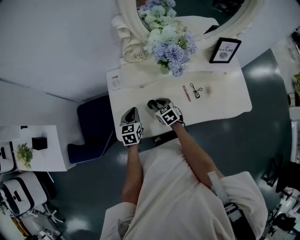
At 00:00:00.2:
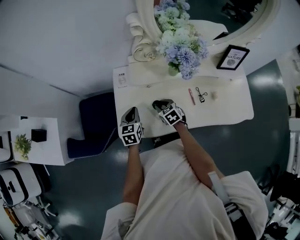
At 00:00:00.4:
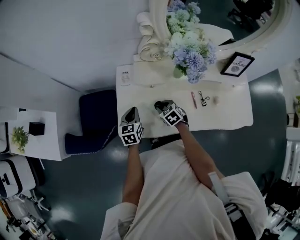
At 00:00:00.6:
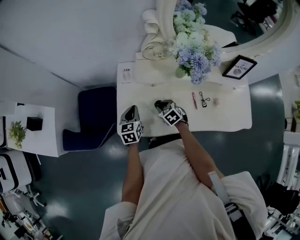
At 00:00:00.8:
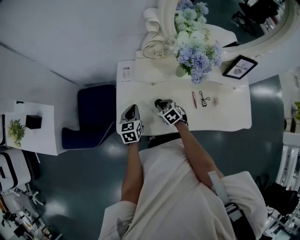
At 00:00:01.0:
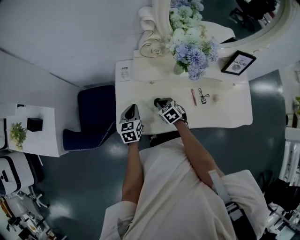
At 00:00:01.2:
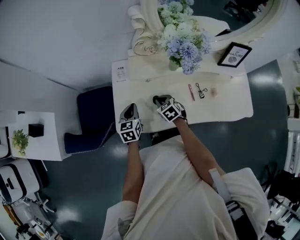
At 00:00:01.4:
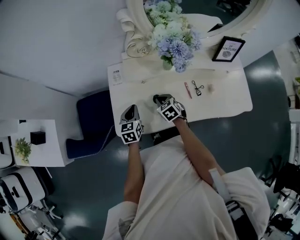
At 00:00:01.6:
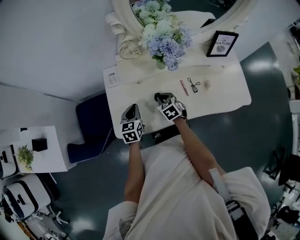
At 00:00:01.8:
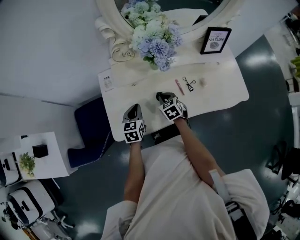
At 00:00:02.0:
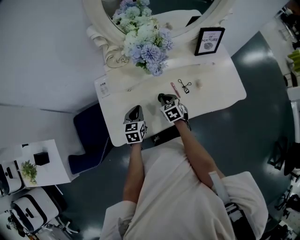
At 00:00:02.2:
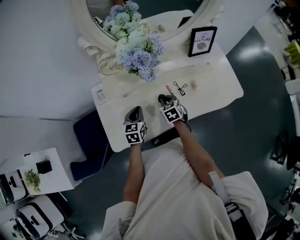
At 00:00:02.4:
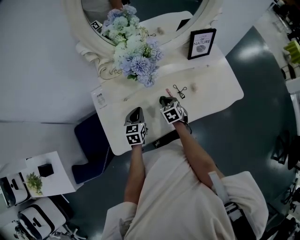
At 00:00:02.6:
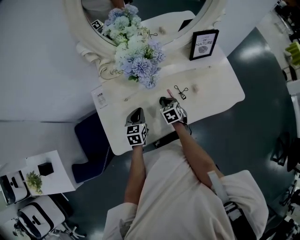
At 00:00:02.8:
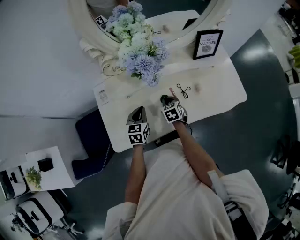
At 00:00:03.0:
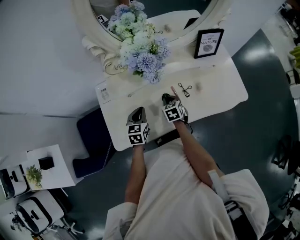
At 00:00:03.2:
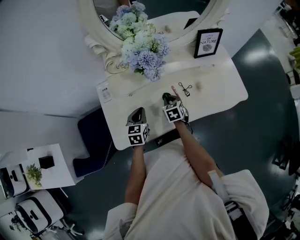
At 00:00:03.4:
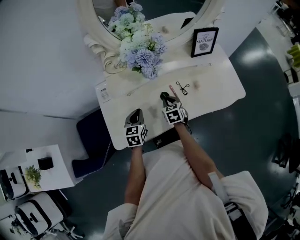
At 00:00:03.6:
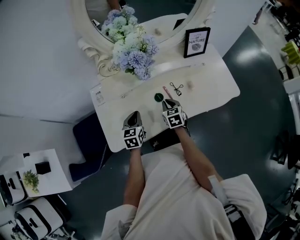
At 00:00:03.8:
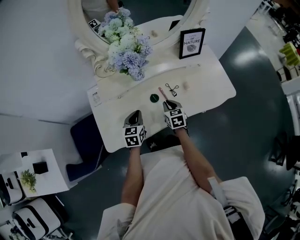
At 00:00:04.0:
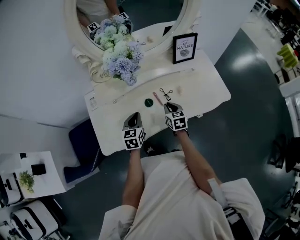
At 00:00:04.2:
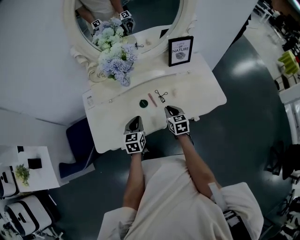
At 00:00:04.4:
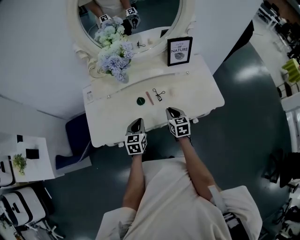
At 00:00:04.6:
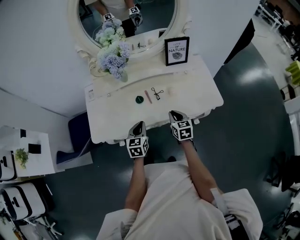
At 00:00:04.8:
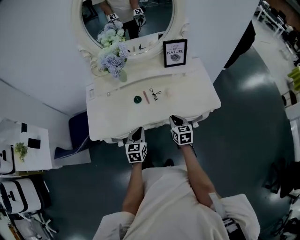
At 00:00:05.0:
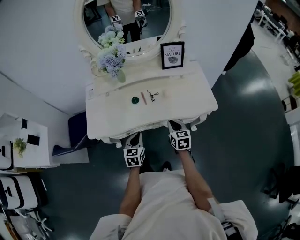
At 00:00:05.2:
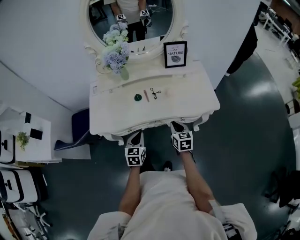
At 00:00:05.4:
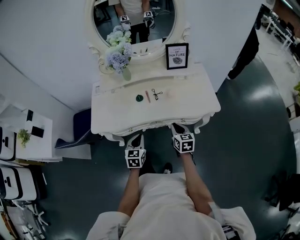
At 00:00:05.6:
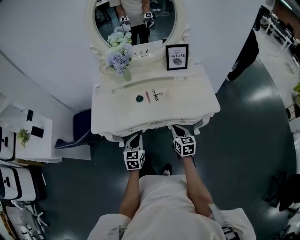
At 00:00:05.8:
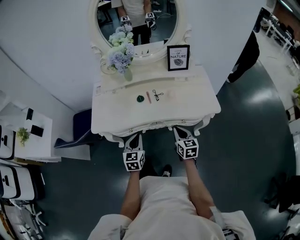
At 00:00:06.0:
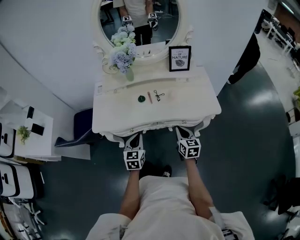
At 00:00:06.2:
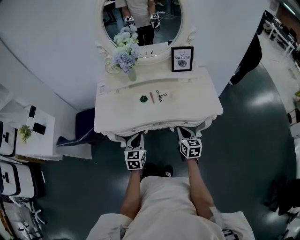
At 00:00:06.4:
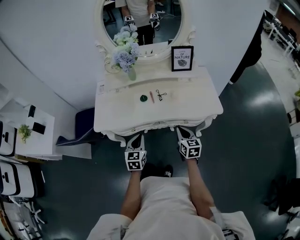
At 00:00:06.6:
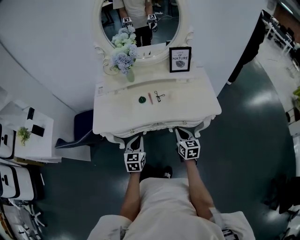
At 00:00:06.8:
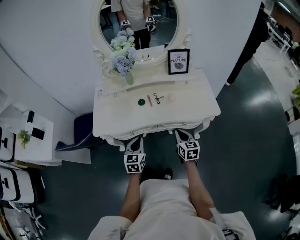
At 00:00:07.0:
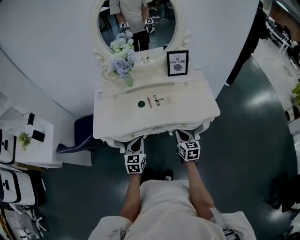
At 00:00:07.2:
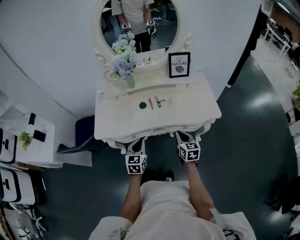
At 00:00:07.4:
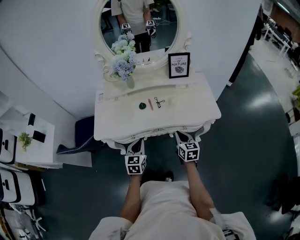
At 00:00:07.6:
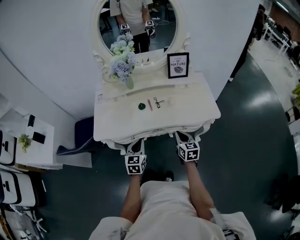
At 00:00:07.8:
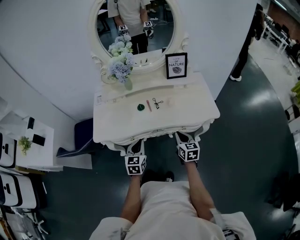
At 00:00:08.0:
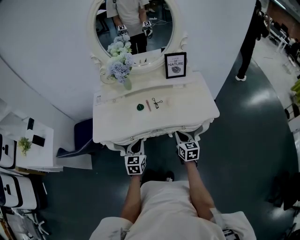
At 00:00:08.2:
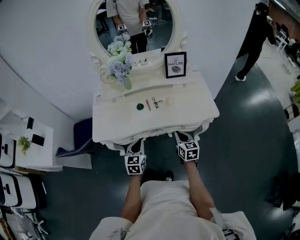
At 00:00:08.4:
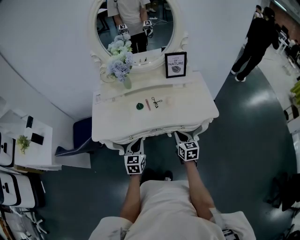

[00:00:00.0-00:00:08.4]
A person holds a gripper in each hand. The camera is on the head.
00:00:00.0 to 00:00:01.4: The right gripper closes.
00:00:01.4 to 00:00:02.8: The two grippers go about 15 cm to the right. The right gripper turns by approximately 30 degrees.
00:00:02.8 to 00:00:04.2: The right gripper moves to the right, backward and upward, approximately 15 cm. Meanwhile the left gripper is displaced to the right and backward by approximately 10 cm.
00:00:04.2 to 00:00:05.6: The left gripper heads backward, covering approximately 20 cm; the right gripper heads backward and to the right, covering approximately 20 cm.
00:00:05.6 to 00:00:07.0: There are only small adjustments of the grippers.
00:00:07.0 to 00:00:08.4: Neither gripper changes place.

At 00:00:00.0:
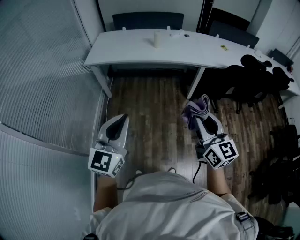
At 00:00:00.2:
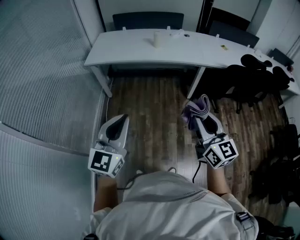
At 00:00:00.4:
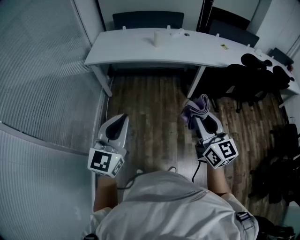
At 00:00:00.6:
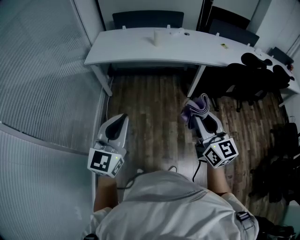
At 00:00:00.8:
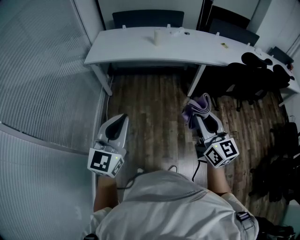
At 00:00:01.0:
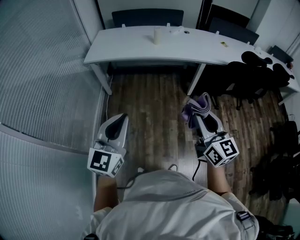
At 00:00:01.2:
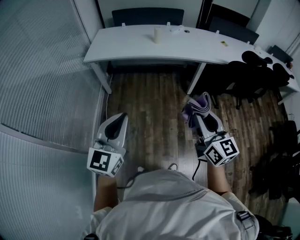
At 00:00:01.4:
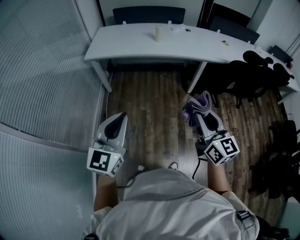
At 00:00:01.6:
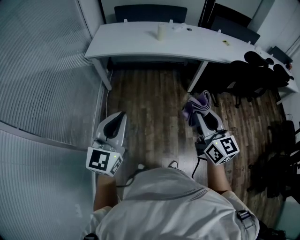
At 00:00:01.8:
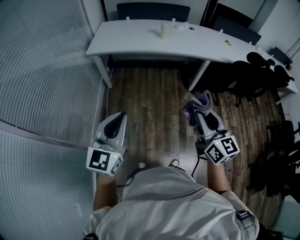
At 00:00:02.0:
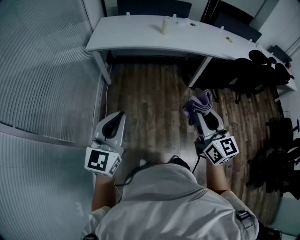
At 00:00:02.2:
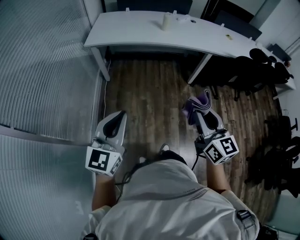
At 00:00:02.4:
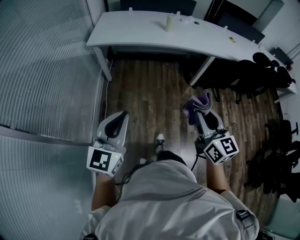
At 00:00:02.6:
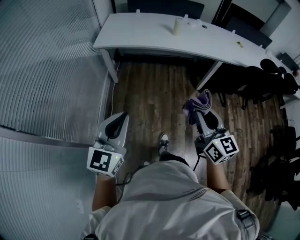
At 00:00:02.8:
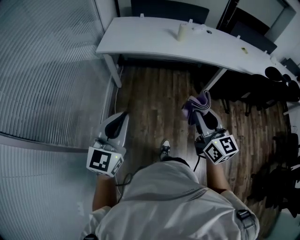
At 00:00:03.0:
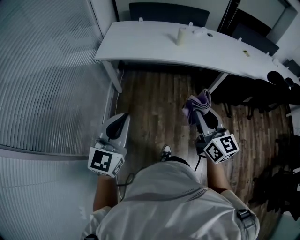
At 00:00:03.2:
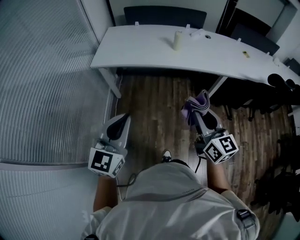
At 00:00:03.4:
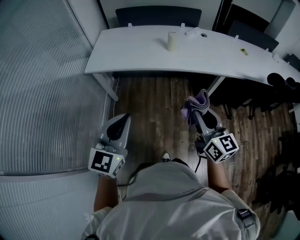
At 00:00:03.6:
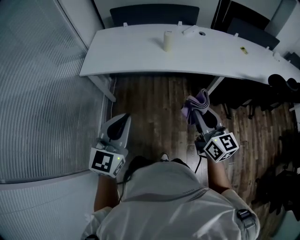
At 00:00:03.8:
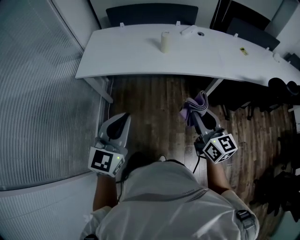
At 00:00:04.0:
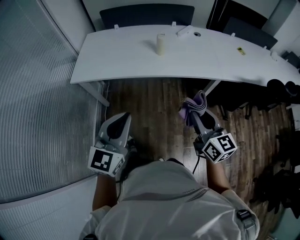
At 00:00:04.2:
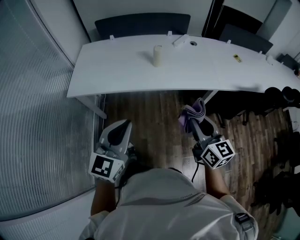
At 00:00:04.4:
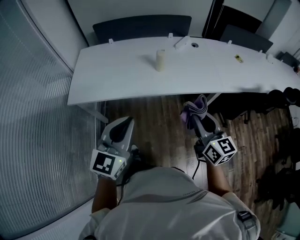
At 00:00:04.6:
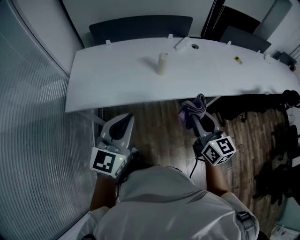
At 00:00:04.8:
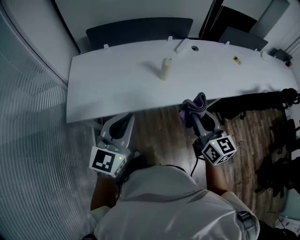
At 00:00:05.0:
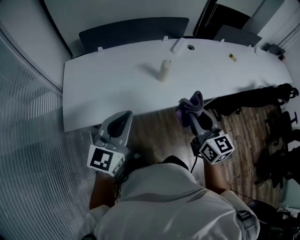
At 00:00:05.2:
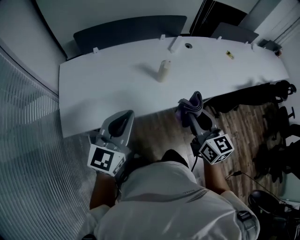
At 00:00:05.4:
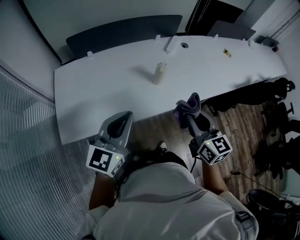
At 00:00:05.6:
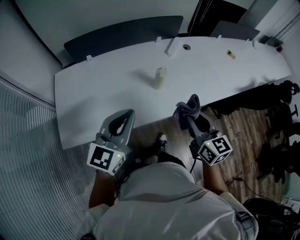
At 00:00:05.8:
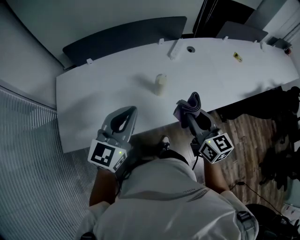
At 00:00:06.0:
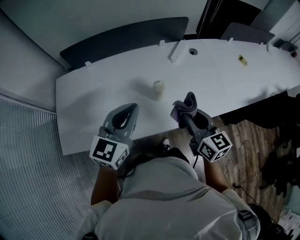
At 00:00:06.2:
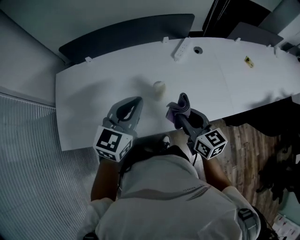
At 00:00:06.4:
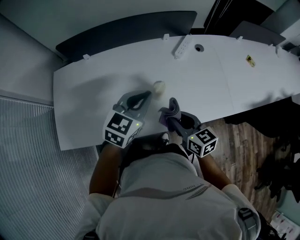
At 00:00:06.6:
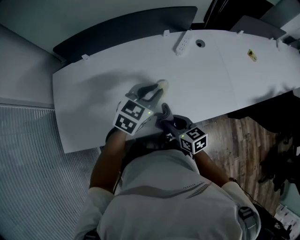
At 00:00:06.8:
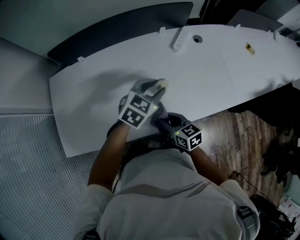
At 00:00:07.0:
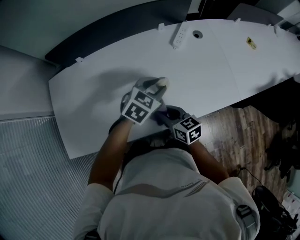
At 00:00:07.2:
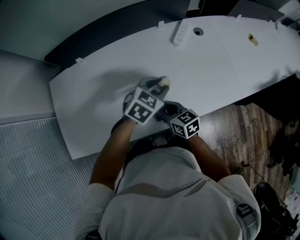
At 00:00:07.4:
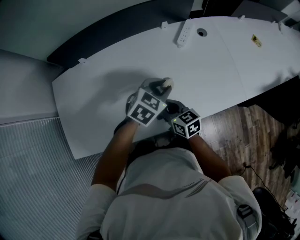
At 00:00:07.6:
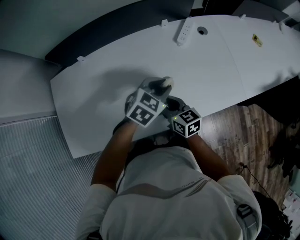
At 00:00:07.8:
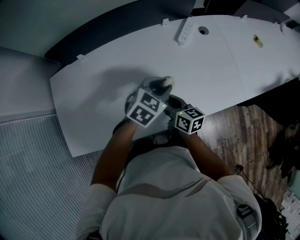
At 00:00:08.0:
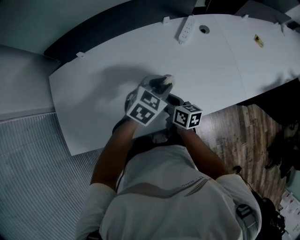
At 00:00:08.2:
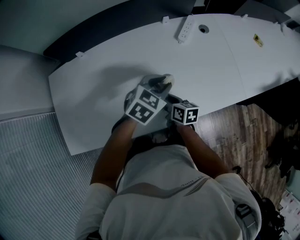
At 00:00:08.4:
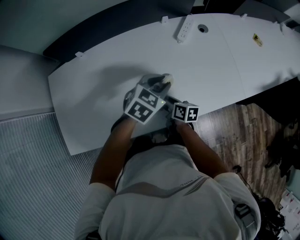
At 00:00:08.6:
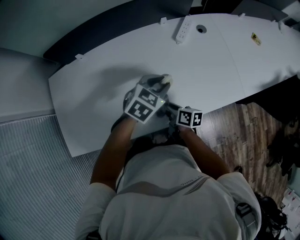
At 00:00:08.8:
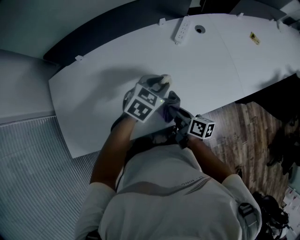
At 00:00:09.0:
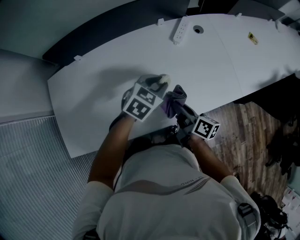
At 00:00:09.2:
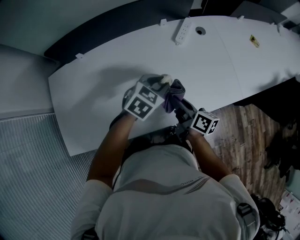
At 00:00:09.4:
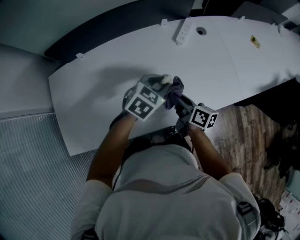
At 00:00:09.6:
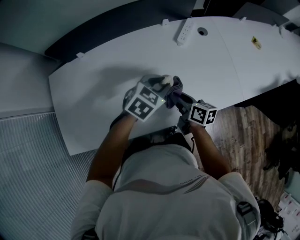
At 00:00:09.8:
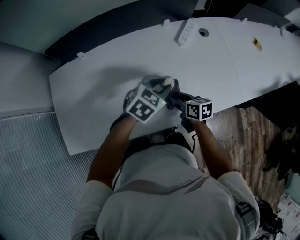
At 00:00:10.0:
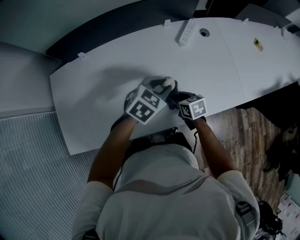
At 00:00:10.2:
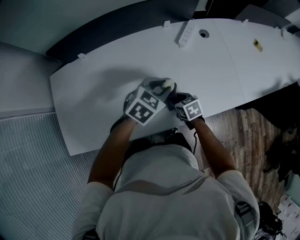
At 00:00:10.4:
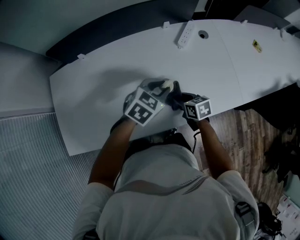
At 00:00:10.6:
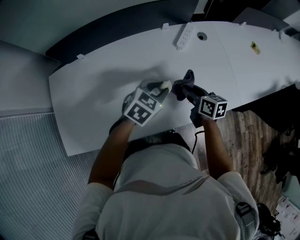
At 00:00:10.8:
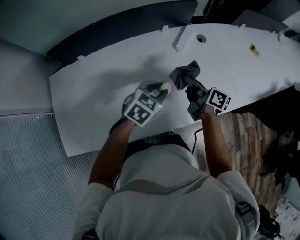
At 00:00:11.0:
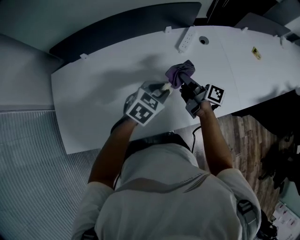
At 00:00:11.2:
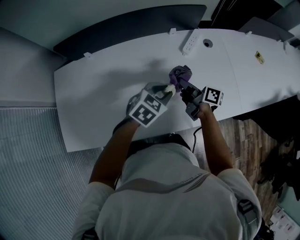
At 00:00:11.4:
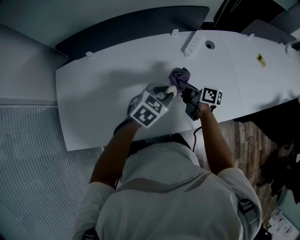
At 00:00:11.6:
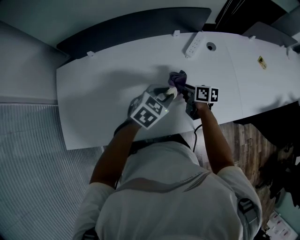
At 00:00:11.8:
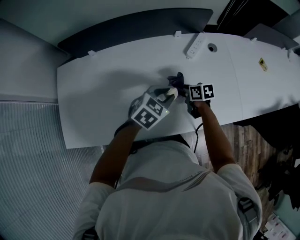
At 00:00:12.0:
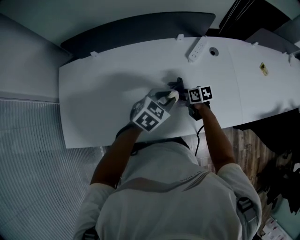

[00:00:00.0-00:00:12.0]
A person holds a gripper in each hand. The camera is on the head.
00:00:00.0 to 00:00:01.6: Both grippers travel together to the left, about 5 cm.
00:00:01.6 to 00:00:03.0: The two grippers go some 20 cm forward and to the left.
00:00:03.0 to 00:00:04.4: Both grippers travel together forward, some 35 cm.
00:00:04.4 to 00:00:06.0: The two grippers go roughly 35 cm forward.
00:00:06.0 to 00:00:07.6: The right gripper shifts about 25 cm downward, to the left and forward. Meanwhile the left gripper is displaced downward, forward and to the right by approximately 25 cm, angles its fingers downward, by about 30 degrees, and opens.
00:00:07.6 to 00:00:09.0: The right gripper is displaced to the right by roughly 10 cm, reaches about 10 cm downward, then returns, and turns by roughly 40 degrees.
00:00:09.0 to 00:00:10.4: The right gripper travels downward and forward by some 10 cm, and swivels some 50 degrees.
00:00:10.4 to 00:00:12.0: The right gripper shifts about 10 cm forward, and goes upward and returns, some 10 cm each way.

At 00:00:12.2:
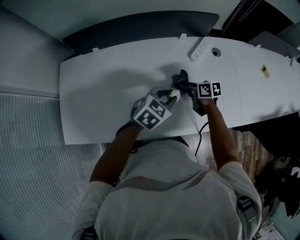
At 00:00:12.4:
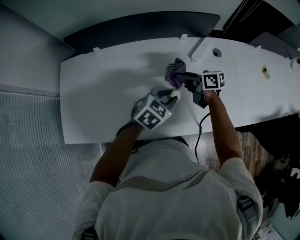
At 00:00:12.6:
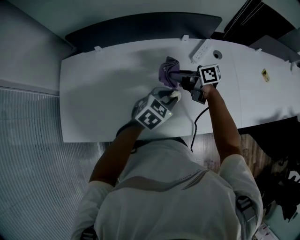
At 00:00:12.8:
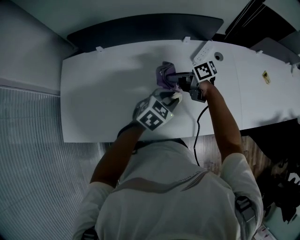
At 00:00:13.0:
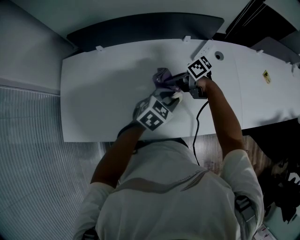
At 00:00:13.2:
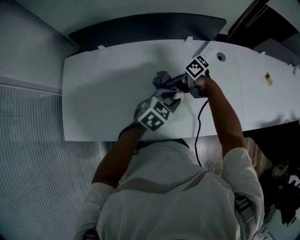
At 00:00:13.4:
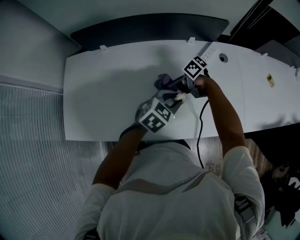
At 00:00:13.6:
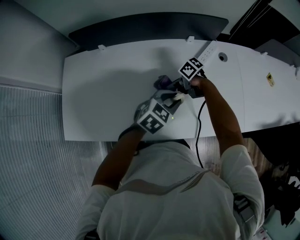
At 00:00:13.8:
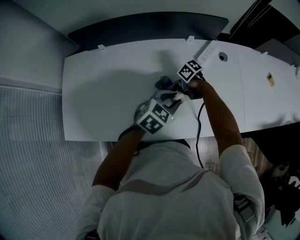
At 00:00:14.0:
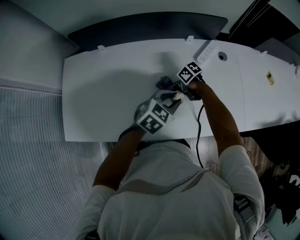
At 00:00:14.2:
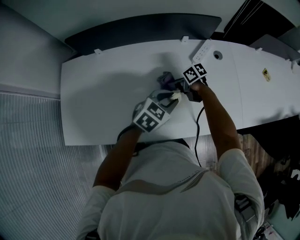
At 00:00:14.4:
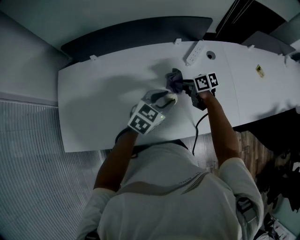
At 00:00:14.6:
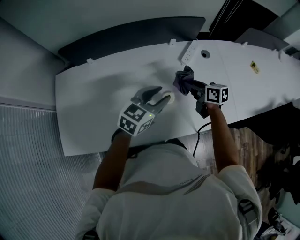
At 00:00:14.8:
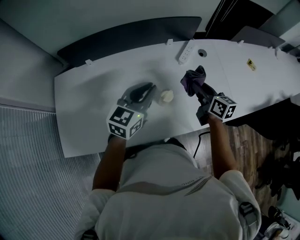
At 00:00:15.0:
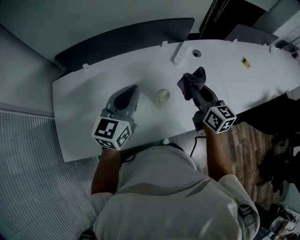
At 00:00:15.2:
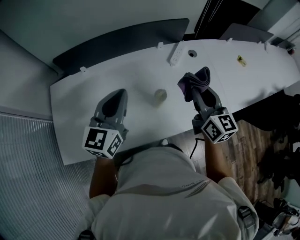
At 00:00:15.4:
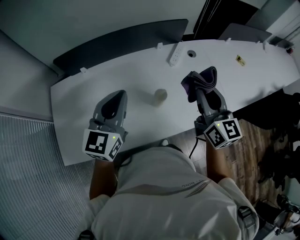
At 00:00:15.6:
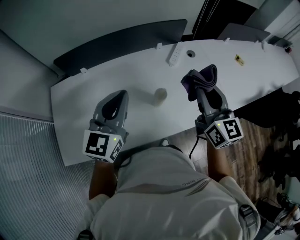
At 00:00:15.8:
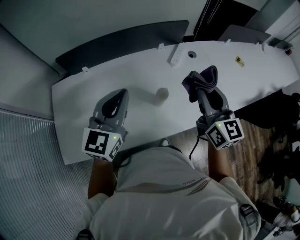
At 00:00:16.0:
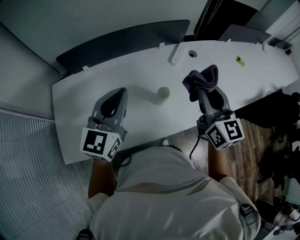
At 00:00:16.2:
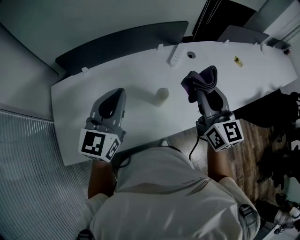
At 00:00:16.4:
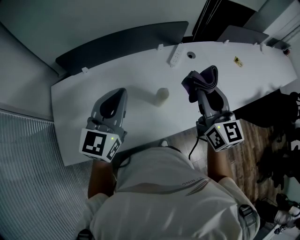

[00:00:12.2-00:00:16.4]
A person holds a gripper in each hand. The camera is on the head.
00:00:12.2 to 00:00:13.6: The right gripper moves some 10 cm upward and comes back, and swivels roughly 40 degrees.
00:00:13.6 to 00:00:15.0: The two grippers go about 20 cm upward. The left gripper tips its fingers upward by roughly 30 degrees, and closes, while the right gripper changes its angle by some 90 degrees.
00:00:15.0 to 00:00:16.4: The left gripper goes about 10 cm upward and backward. The right gripper shifts roughly 15 cm upward and backward, and rotates approximately 20 degrees.
